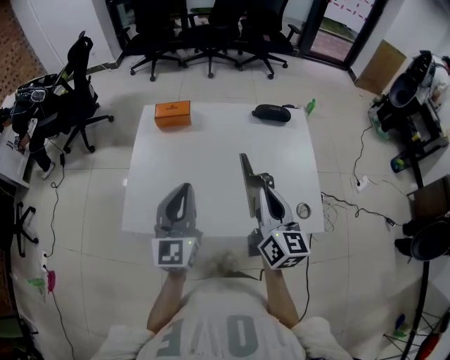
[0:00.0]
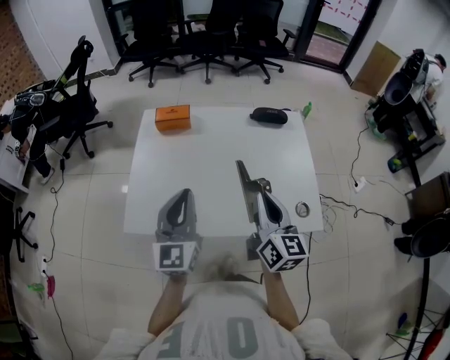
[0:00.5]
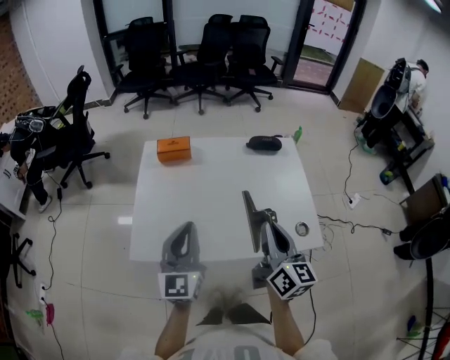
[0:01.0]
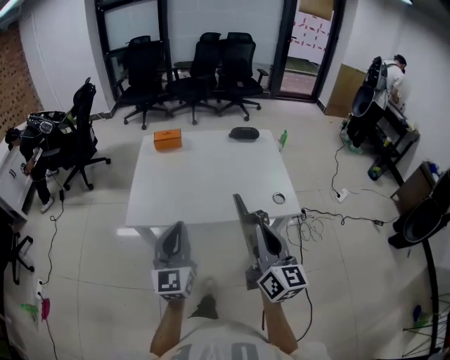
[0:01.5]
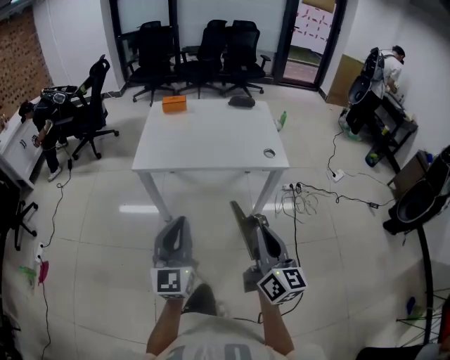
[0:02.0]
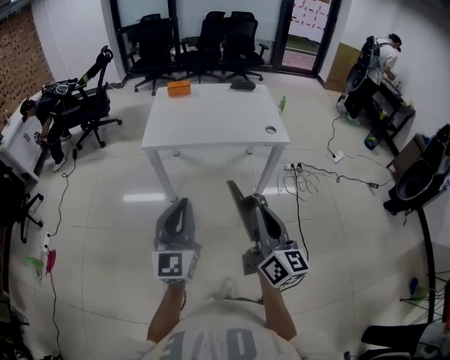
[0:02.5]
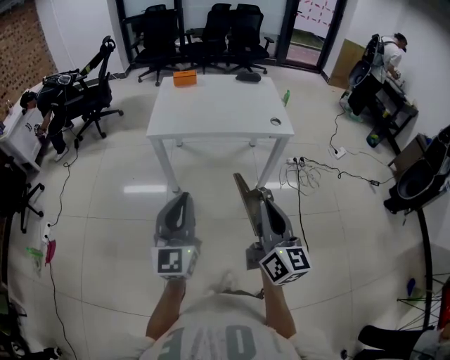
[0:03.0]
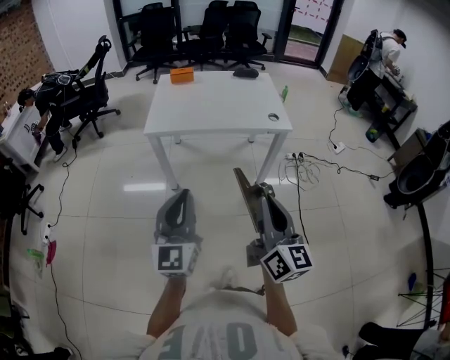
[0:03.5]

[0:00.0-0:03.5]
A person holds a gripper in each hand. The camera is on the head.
0:00.0 to 0:02.0: The pair of grippers is taken backward, roughly 50 cm.
0:02.0 to 0:03.5: The two grippers go approximately 10 cm backward.

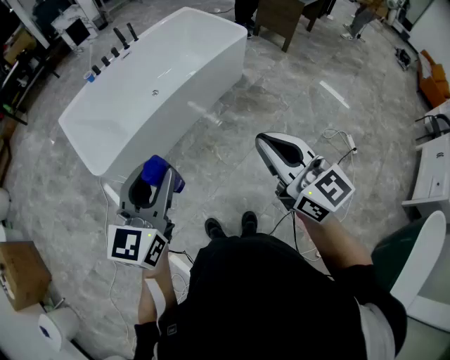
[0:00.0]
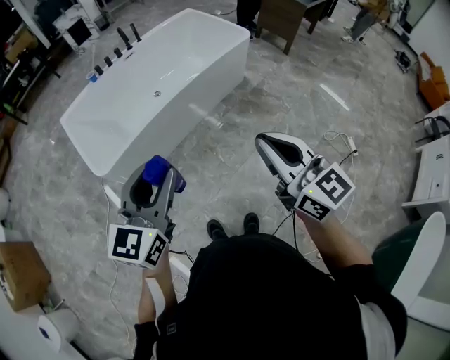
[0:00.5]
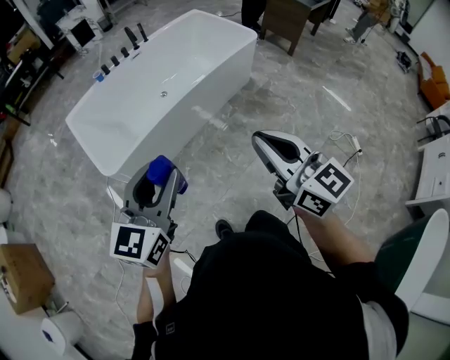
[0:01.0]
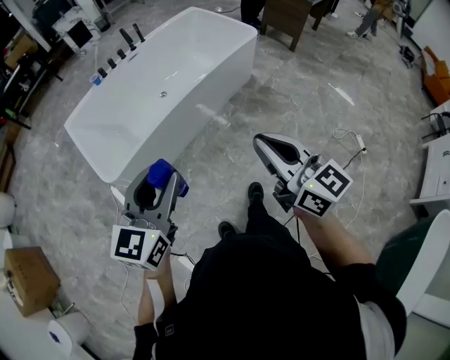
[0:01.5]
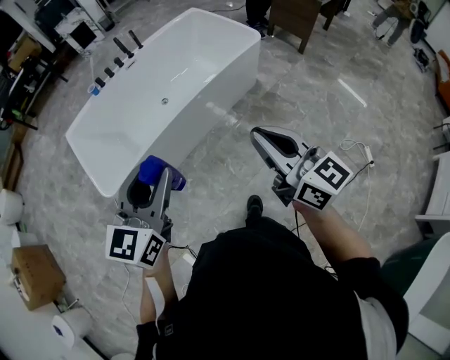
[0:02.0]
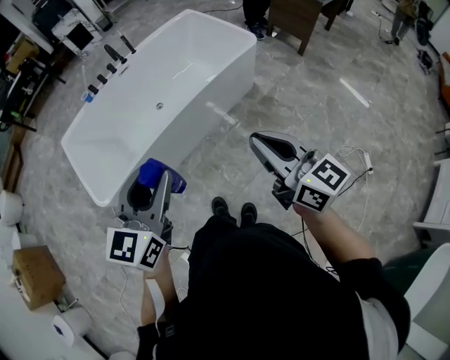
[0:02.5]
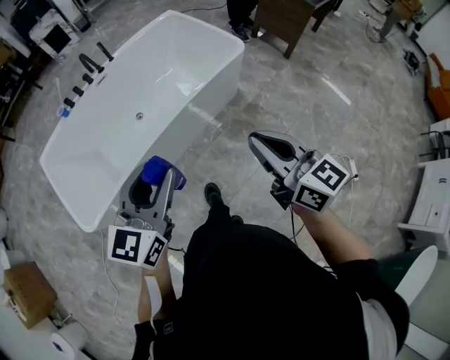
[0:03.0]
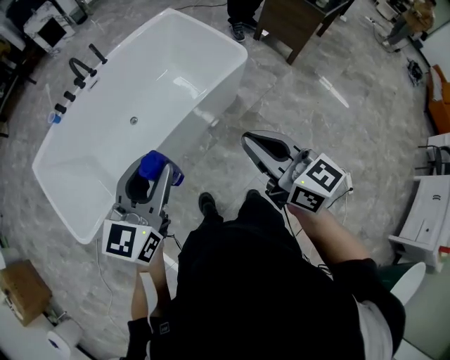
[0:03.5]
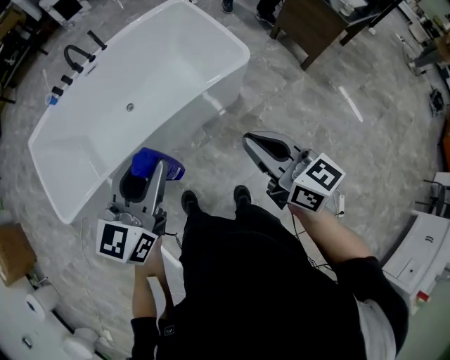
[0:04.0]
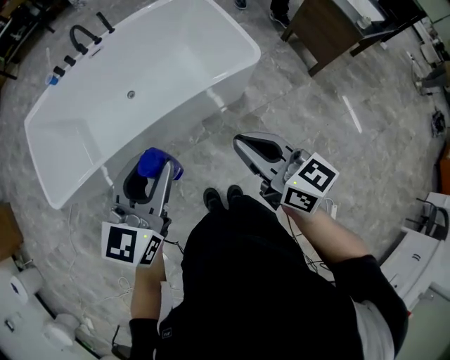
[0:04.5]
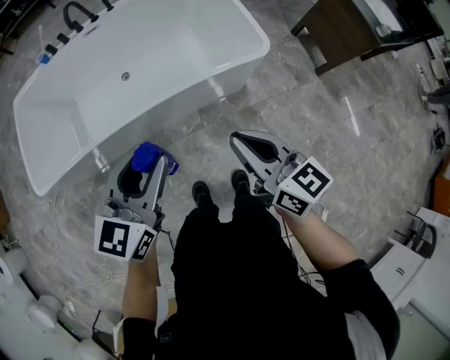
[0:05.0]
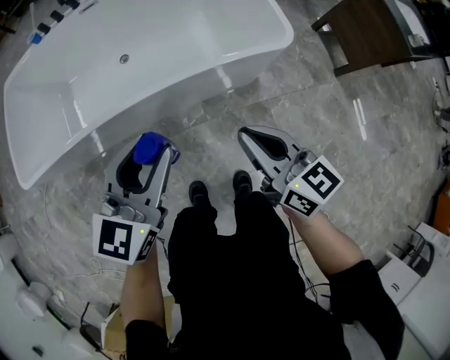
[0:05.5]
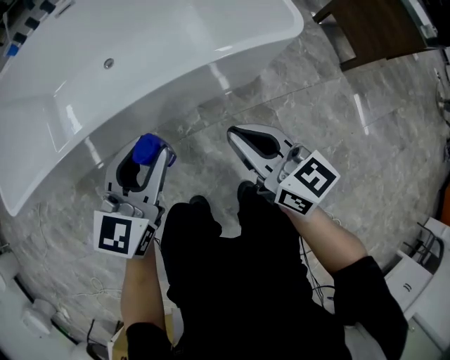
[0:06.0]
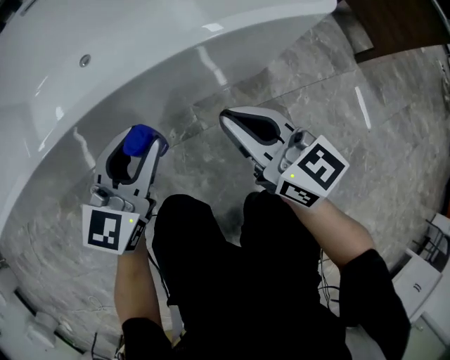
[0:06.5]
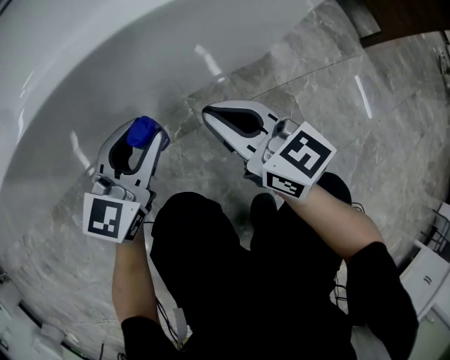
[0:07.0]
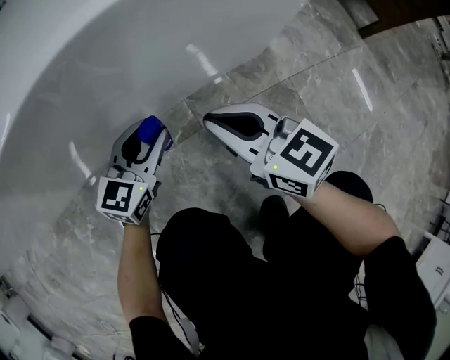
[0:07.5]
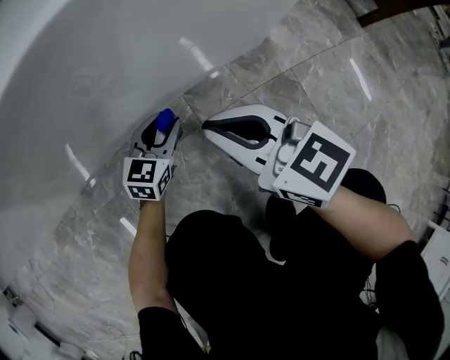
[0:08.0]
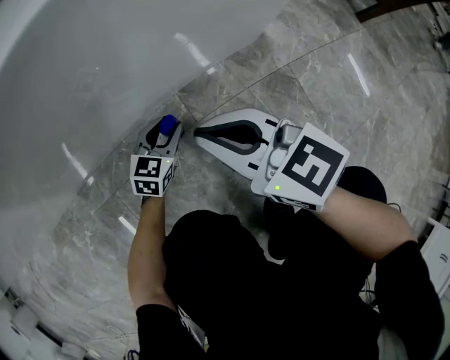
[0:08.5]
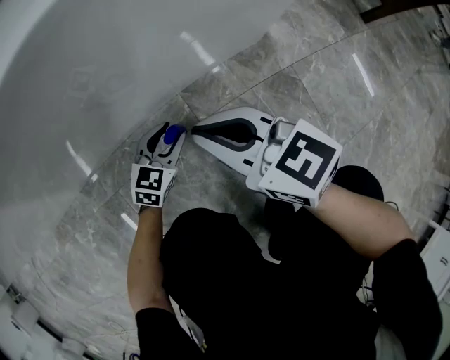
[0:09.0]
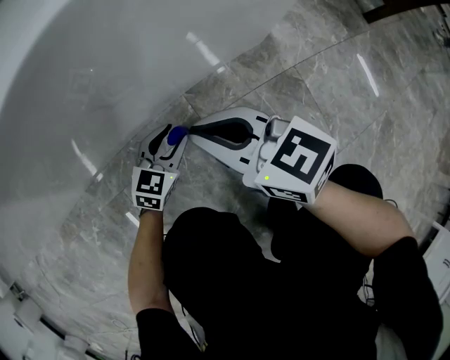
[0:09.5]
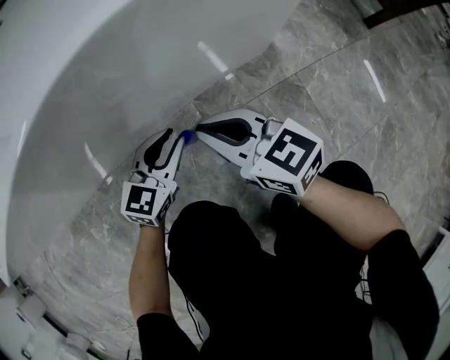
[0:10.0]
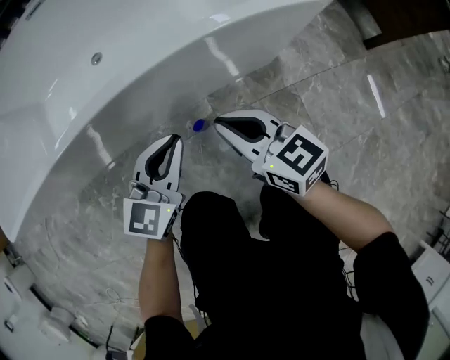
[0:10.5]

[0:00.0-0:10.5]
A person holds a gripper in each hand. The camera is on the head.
0:00.0 to 0:02.0: Both grippers move forward, roughly 15 cm.
0:02.0 to 0:04.0: The two grippers travel together, forward and to the right, some 50 cm.
0:04.0 to 0:06.5: The two grippers go roughly 50 cm downward.
0:06.5 to 0:08.5: The left gripper heads downward, covering about 40 cm, and turns by some 20 degrees, while the right gripper goes approximately 20 cm downward.
0:08.5 to 0:10.5: The left gripper goes approximately 40 cm upward, and closes its fingers. The right gripper is displaced upward by approximately 15 cm.

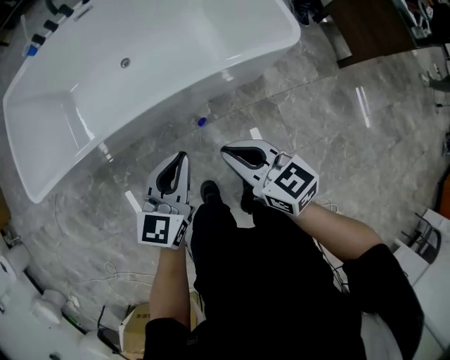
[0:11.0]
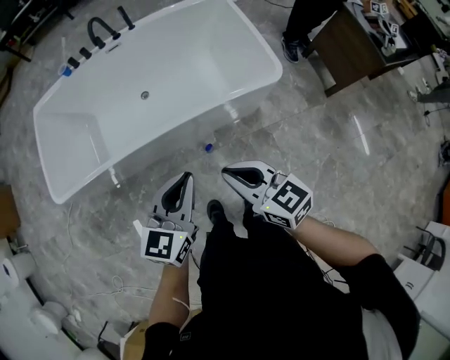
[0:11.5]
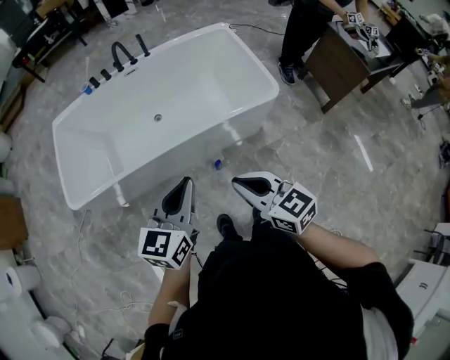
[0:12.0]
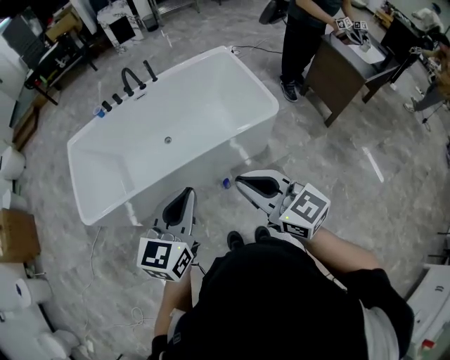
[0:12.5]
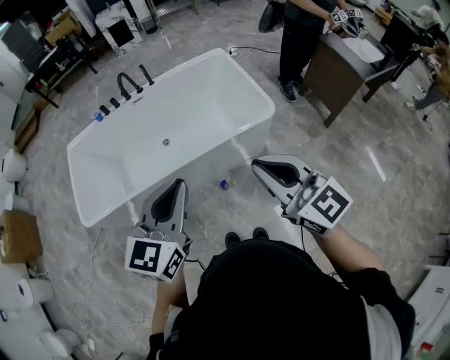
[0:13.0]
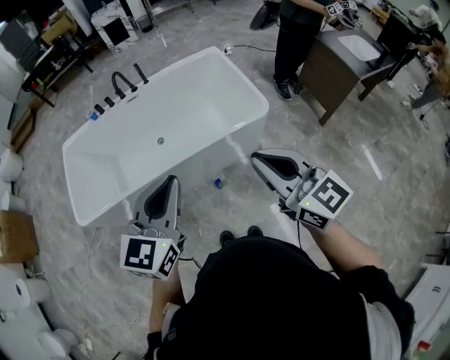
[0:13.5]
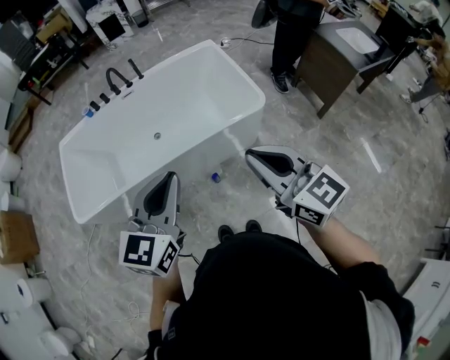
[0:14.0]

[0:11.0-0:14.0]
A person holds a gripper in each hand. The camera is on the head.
0:11.0 to 0:12.5: The grippers both shift upward and backward by roughly 40 cm. The right gripper rotates approximately 20 degrees.
0:12.5 to 0:14.0: The left gripper heads to the right, covering some 5 cm. The right gripper travels to the right by some 10 cm.

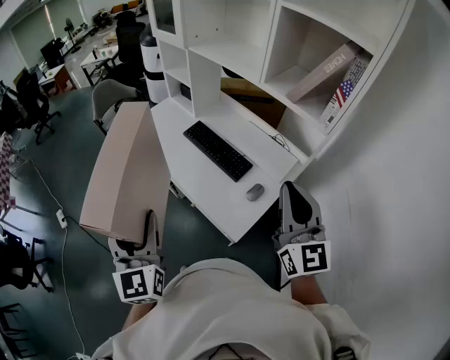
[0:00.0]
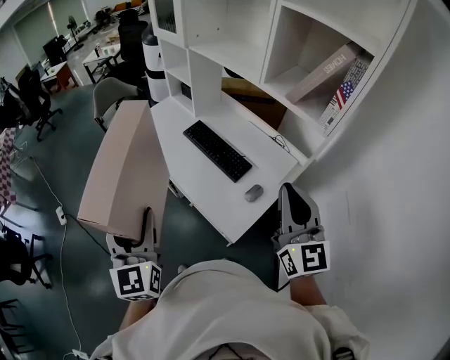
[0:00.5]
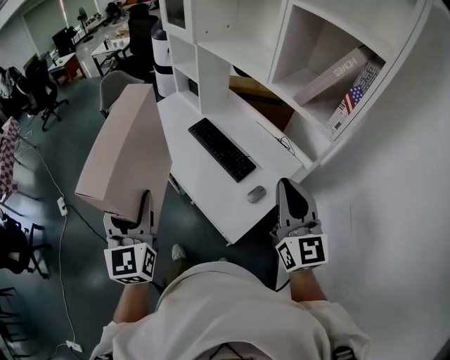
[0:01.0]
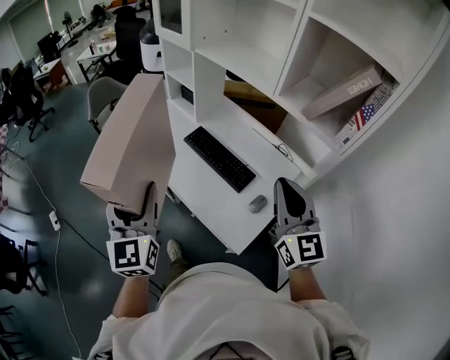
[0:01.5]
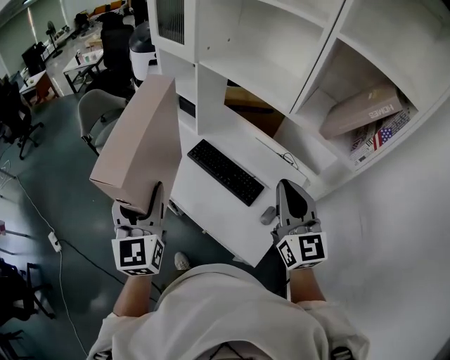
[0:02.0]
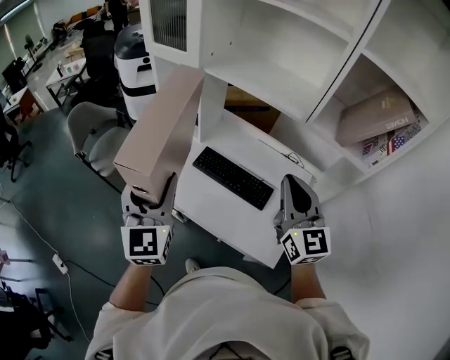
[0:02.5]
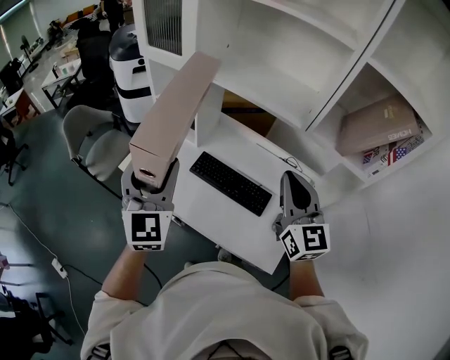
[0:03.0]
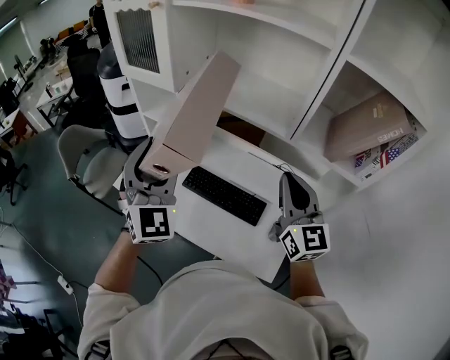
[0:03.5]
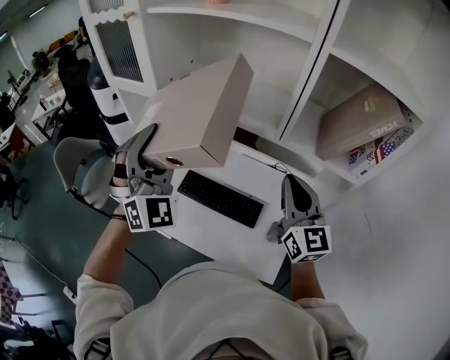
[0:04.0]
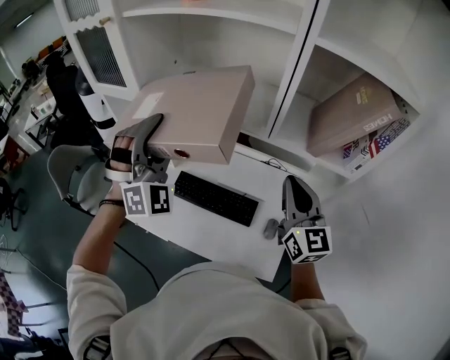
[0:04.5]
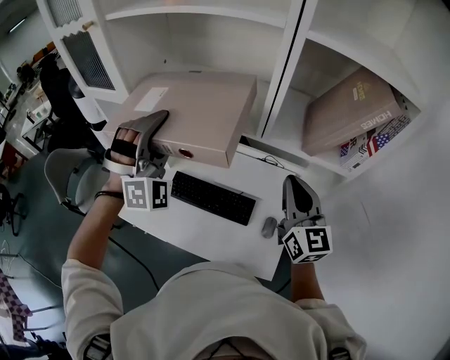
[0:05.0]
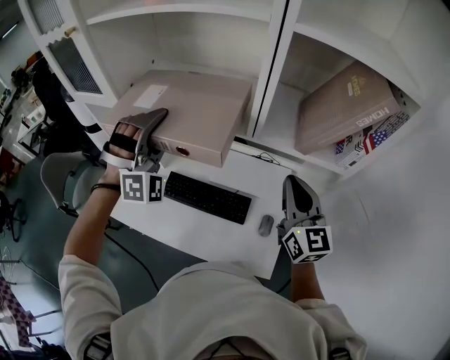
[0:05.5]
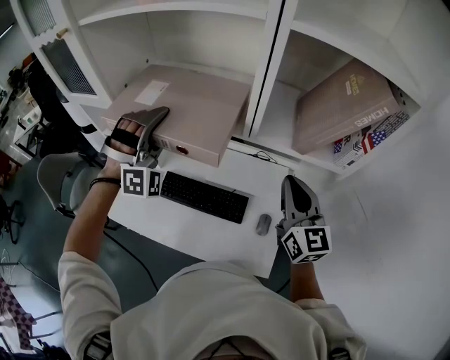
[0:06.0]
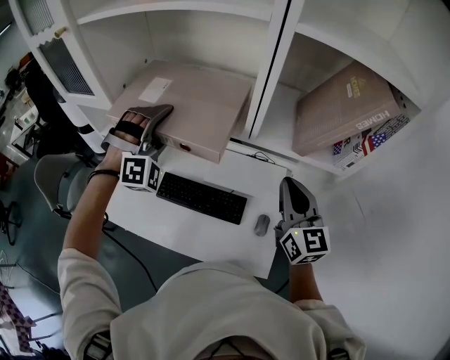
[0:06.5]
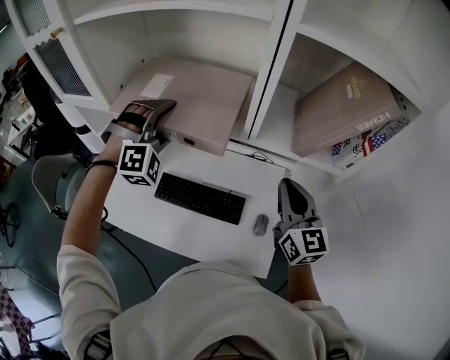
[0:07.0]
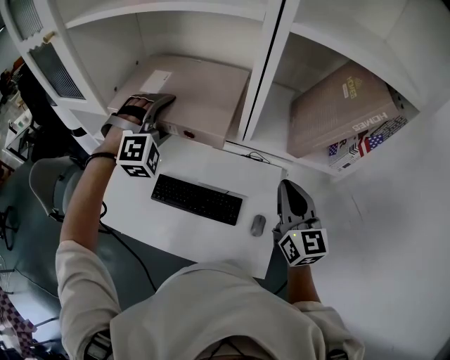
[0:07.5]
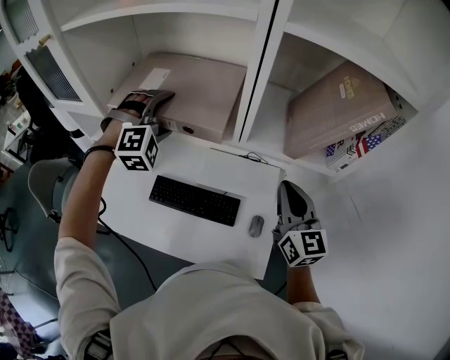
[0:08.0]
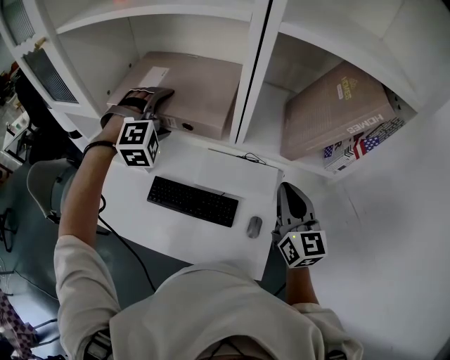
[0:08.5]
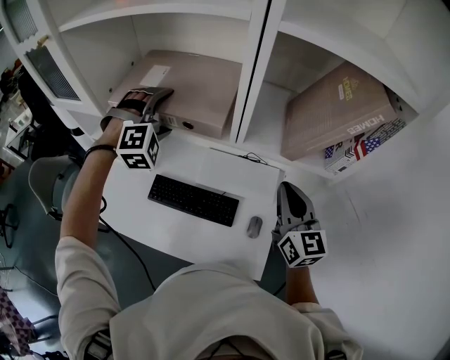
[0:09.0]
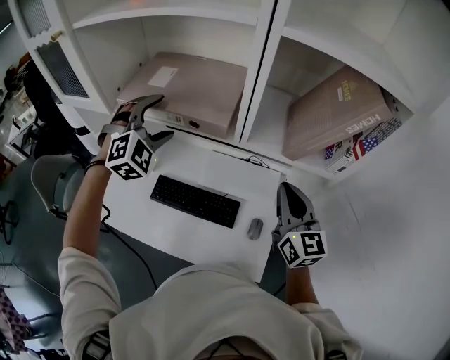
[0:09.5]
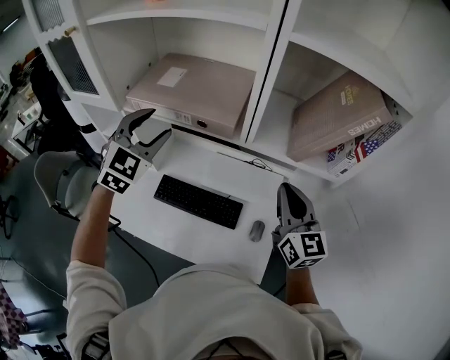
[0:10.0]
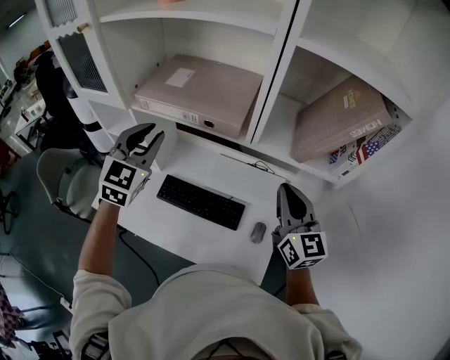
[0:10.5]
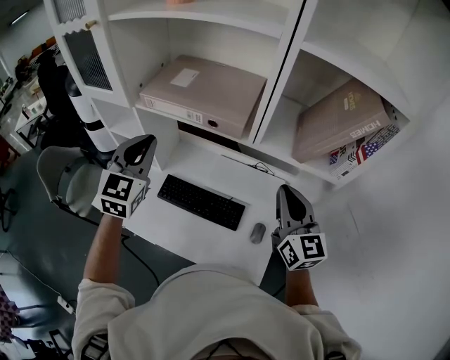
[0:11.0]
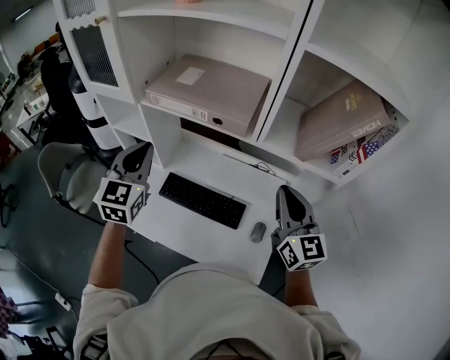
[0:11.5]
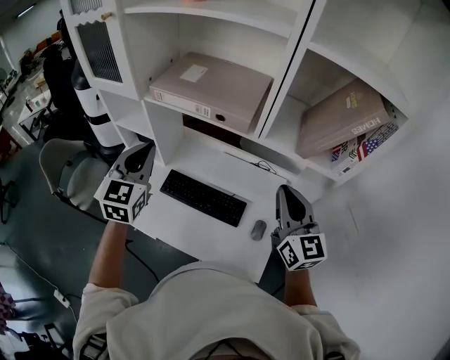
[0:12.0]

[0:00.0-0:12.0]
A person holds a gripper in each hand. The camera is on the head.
0:00.0 to 0:02.0: The left gripper is displaced forward by about 25 cm; the right gripper moves forward and to the left, approximately 20 cm.
0:02.0 to 0:04.0: The left gripper heads forward, covering approximately 25 cm, and rotates around the line of its fingers by roughly 50 degrees, clockwise from behind. Meanwhile the right gripper goes about 15 cm forward.
0:04.0 to 0:06.0: The right gripper heads to the right, covering roughly 10 cm. Meanwhile the left gripper moves forward, to the right and downward, about 20 cm, and rotates some 40 degrees.
0:06.0 to 0:08.0: The left gripper shifts about 5 cm forward, and changes its angle by roughly 30 degrees.
0:08.0 to 0:10.0: The left gripper travels backward and upward by approximately 10 cm, and twists some 40 degrees counterclockwise, seen from behind.
0:10.0 to 0:12.0: The right gripper shifts by about 5 cm; the left gripper moves backward and to the left, roughly 10 cm, turns by approximately 30 degrees, and closes its fingers.
